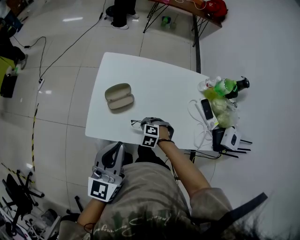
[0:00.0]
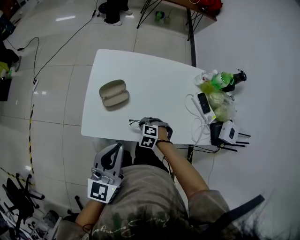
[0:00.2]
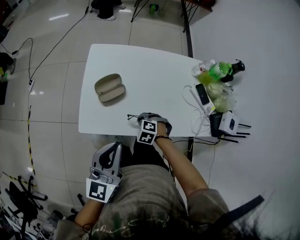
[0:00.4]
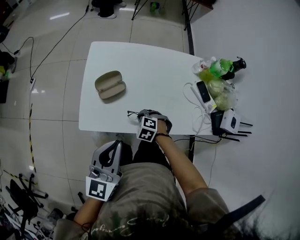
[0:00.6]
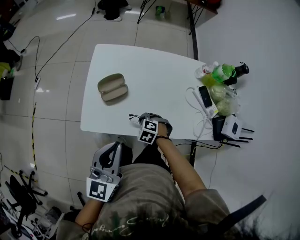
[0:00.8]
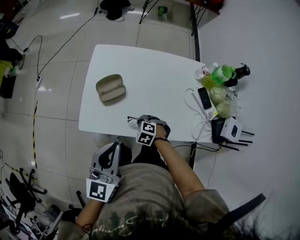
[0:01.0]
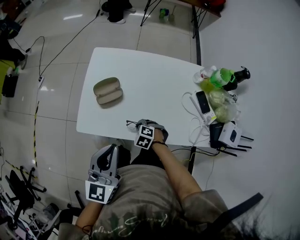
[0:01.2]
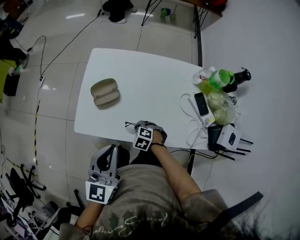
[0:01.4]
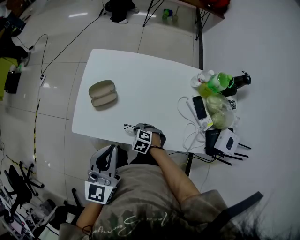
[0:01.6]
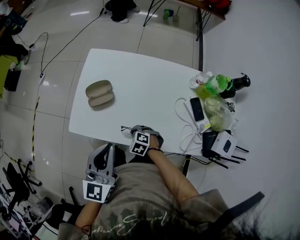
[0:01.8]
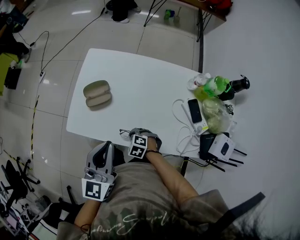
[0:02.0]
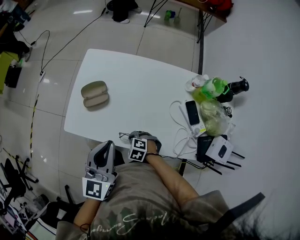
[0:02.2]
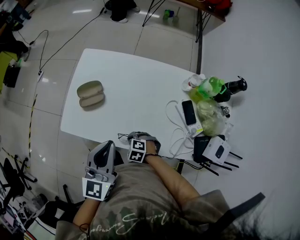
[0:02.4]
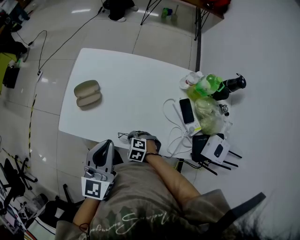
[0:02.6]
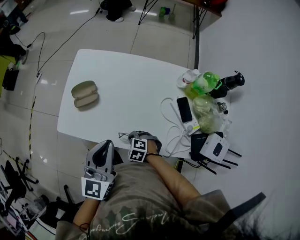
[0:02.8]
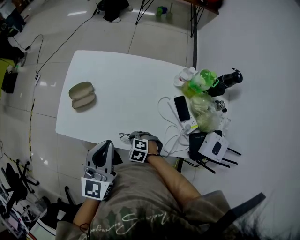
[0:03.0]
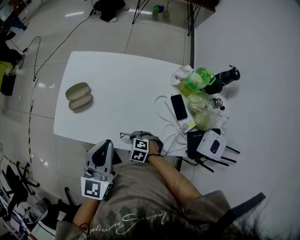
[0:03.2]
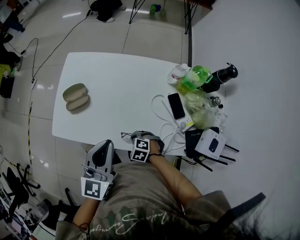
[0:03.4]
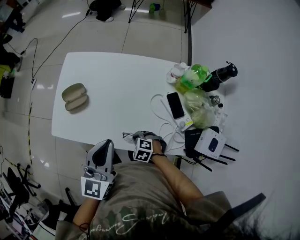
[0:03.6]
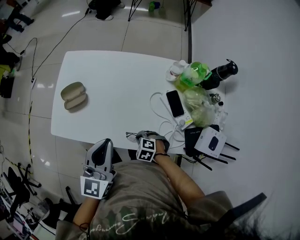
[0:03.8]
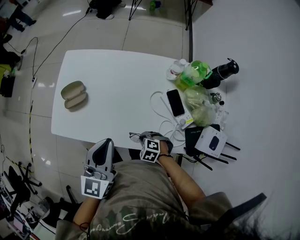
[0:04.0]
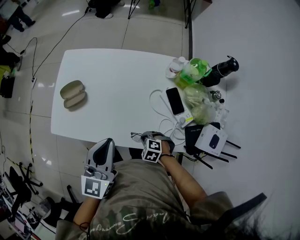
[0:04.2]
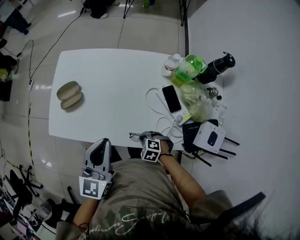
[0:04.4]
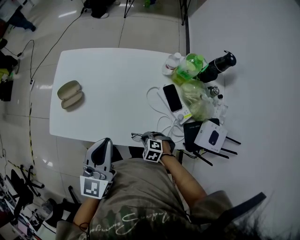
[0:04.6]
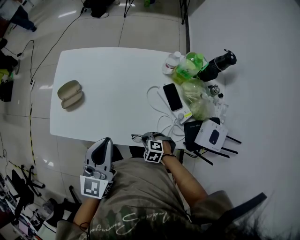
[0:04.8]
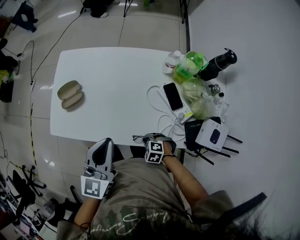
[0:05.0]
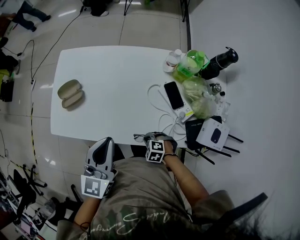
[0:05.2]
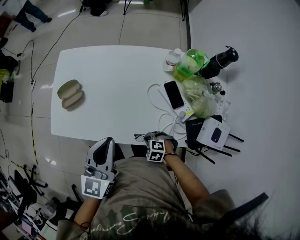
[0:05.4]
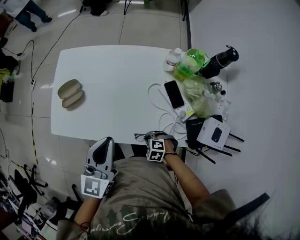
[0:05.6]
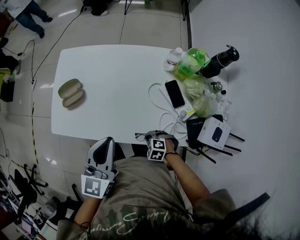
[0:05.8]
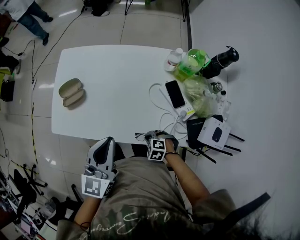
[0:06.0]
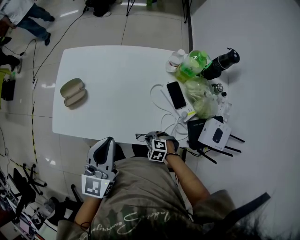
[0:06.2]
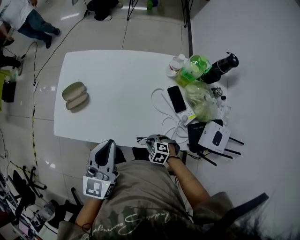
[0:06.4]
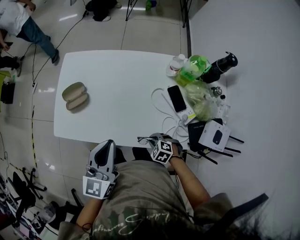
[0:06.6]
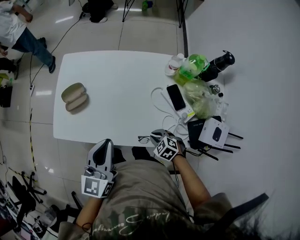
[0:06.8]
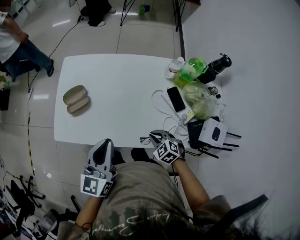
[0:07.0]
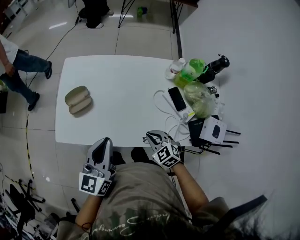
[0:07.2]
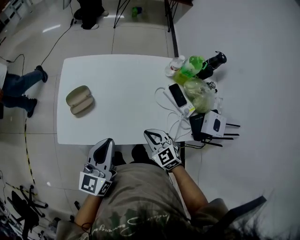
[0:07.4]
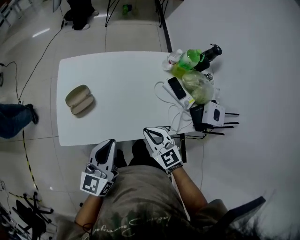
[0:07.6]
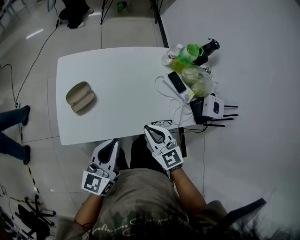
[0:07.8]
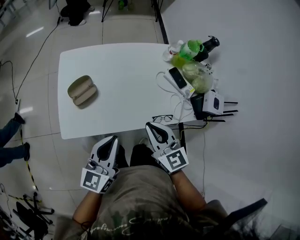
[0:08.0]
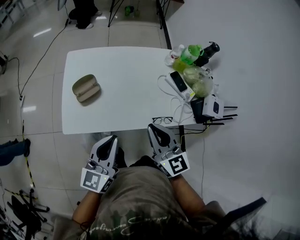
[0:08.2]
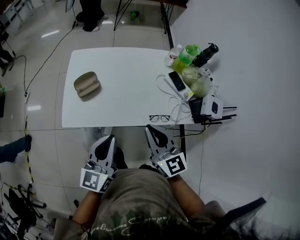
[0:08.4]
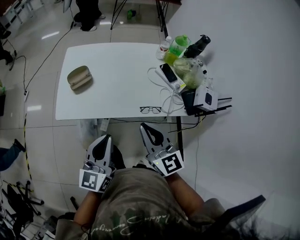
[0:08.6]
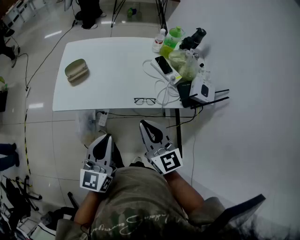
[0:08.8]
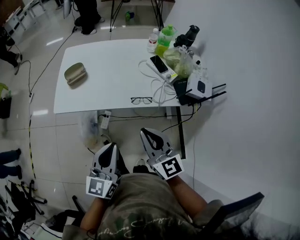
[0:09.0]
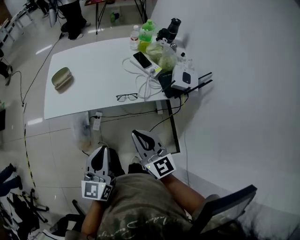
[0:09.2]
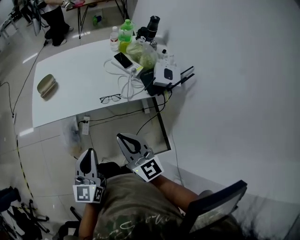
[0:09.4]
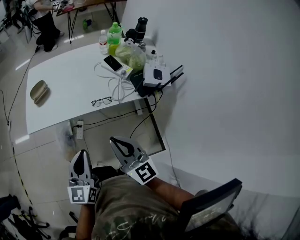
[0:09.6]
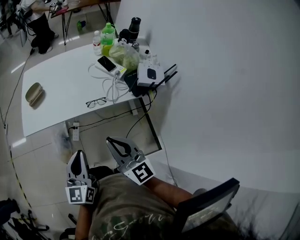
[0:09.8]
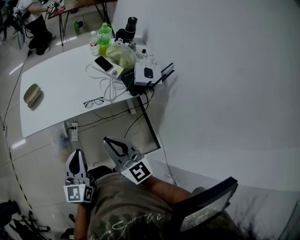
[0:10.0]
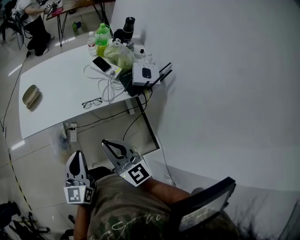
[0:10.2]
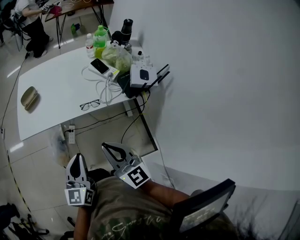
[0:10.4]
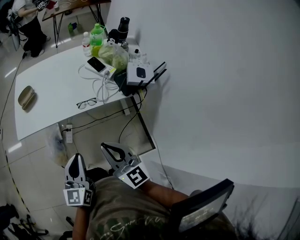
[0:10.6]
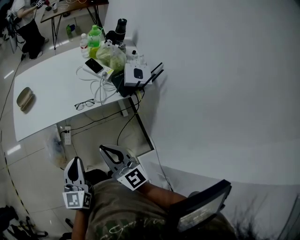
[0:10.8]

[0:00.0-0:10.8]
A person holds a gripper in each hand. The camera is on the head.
0:00.0 to 0:01.6: The left gripper ends up roughly 10 cm from where it was, while the right gripper changes place by roughly 10 cm.
0:01.6 to 0:03.0: The left gripper travels to the right by some 10 cm, while the right gripper goes approximately 10 cm to the right and backward.
0:03.0 to 0:04.6: The left gripper goes about 5 cm to the right; the right gripper travels backward and to the right by roughly 15 cm.
0:04.6 to 0:06.2: The grippers move only a little.
0:06.2 to 0:07.8: The right gripper travels upward by about 25 cm, and points its fingers about 40 degrees further upward, while the left gripper changes place by approximately 15 cm, and rotates some 20 degrees.
0:07.8 to 0:09.2: Both grippers travel together backward and to the right, approximately 30 cm. The right gripper turns by approximately 20 degrees.
0:09.2 to 0:10.8: The left gripper ends up some 5 cm from where it was. The right gripper moves backward, approximately 5 cm.

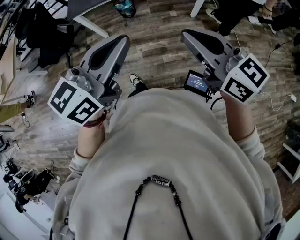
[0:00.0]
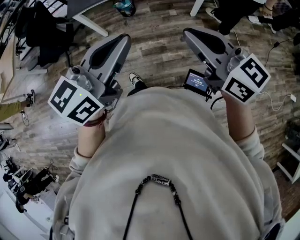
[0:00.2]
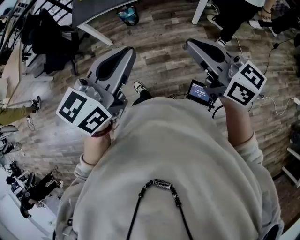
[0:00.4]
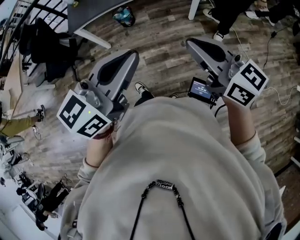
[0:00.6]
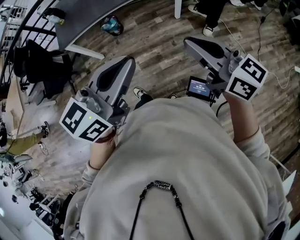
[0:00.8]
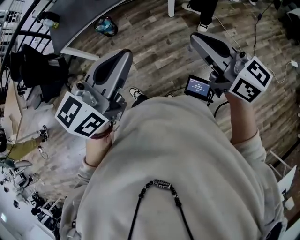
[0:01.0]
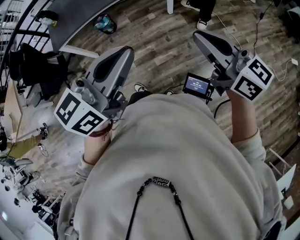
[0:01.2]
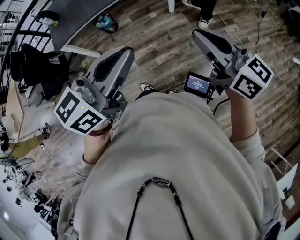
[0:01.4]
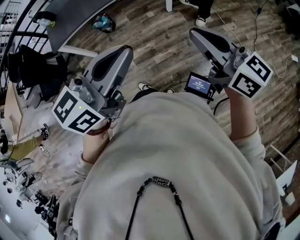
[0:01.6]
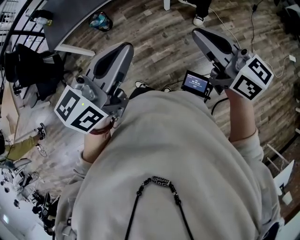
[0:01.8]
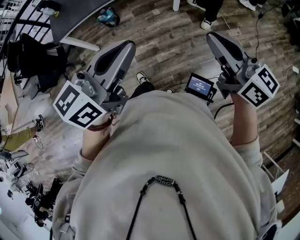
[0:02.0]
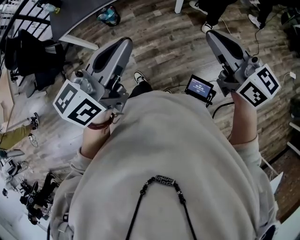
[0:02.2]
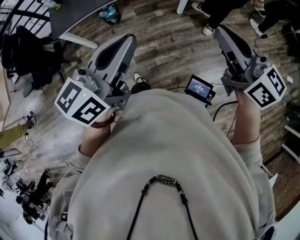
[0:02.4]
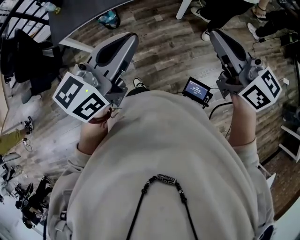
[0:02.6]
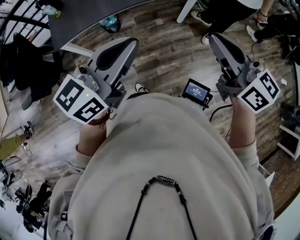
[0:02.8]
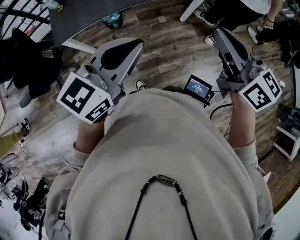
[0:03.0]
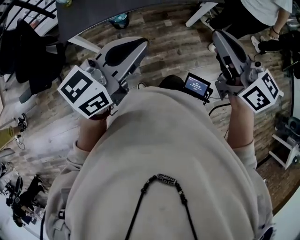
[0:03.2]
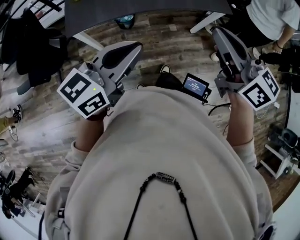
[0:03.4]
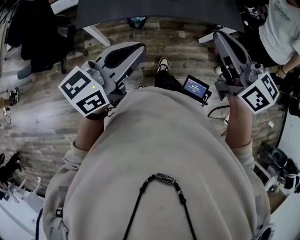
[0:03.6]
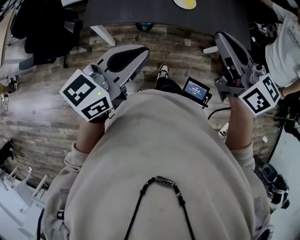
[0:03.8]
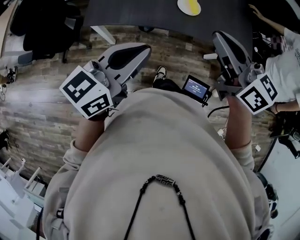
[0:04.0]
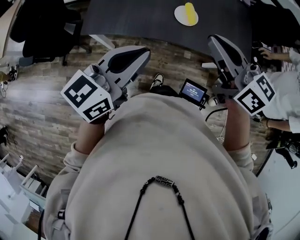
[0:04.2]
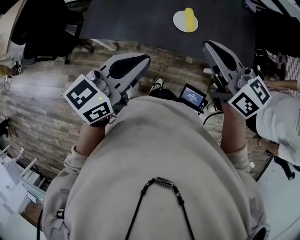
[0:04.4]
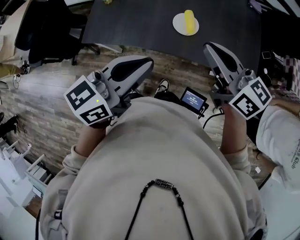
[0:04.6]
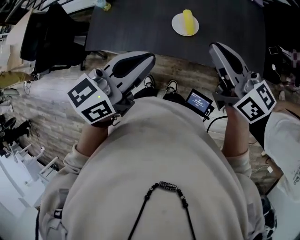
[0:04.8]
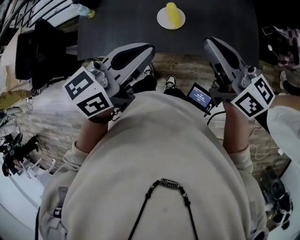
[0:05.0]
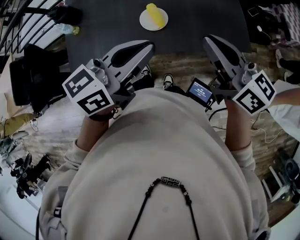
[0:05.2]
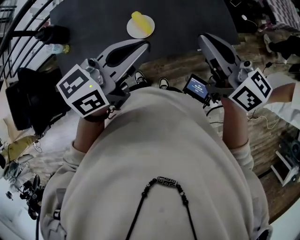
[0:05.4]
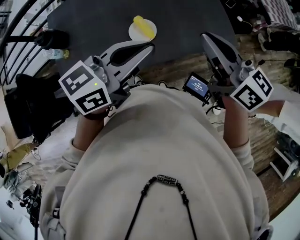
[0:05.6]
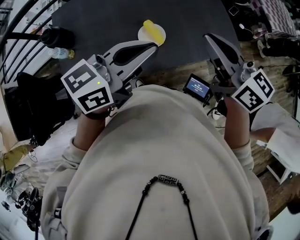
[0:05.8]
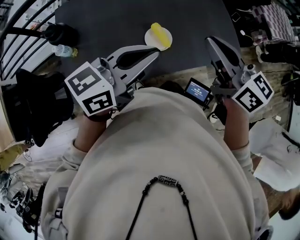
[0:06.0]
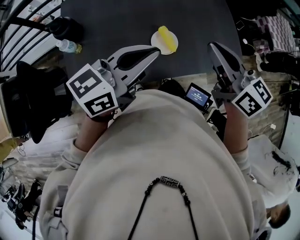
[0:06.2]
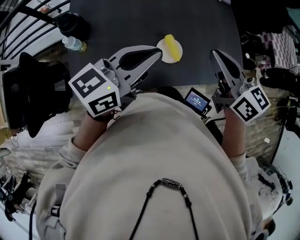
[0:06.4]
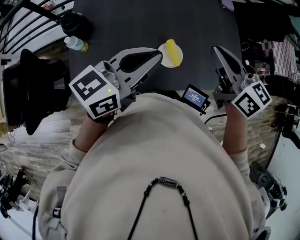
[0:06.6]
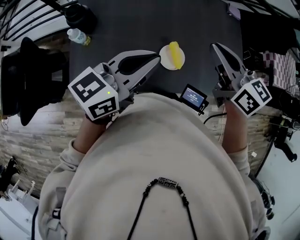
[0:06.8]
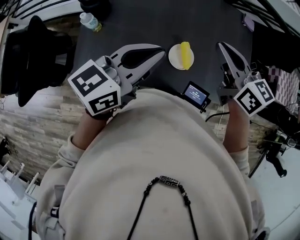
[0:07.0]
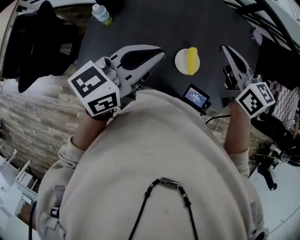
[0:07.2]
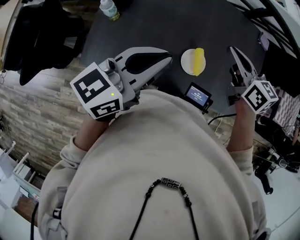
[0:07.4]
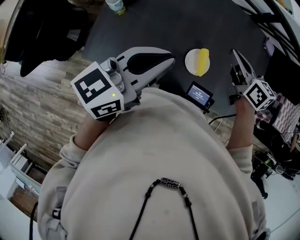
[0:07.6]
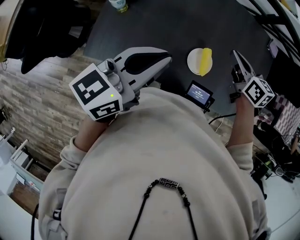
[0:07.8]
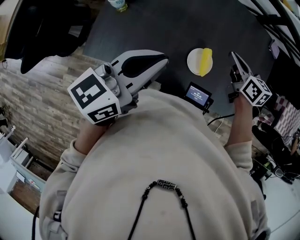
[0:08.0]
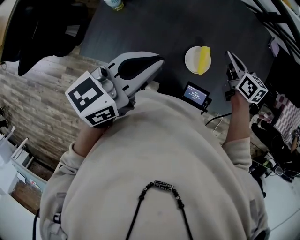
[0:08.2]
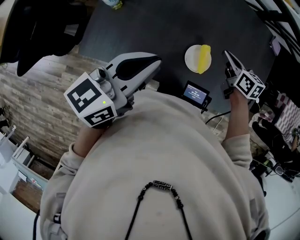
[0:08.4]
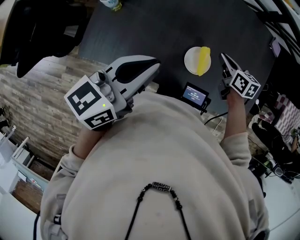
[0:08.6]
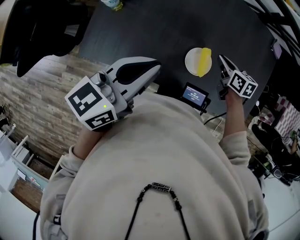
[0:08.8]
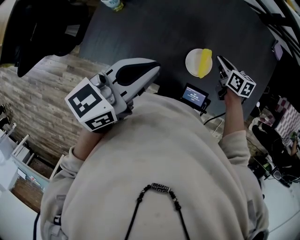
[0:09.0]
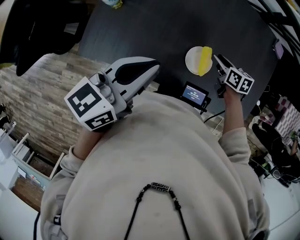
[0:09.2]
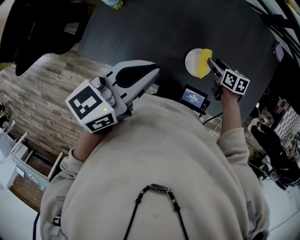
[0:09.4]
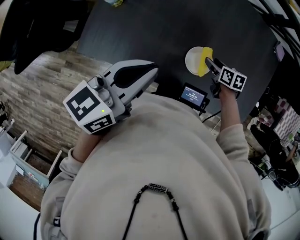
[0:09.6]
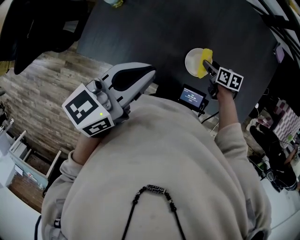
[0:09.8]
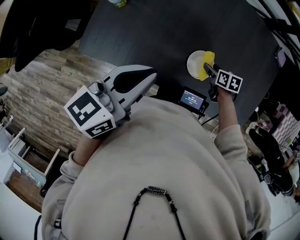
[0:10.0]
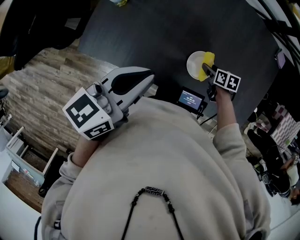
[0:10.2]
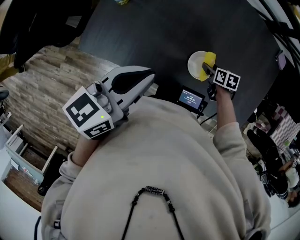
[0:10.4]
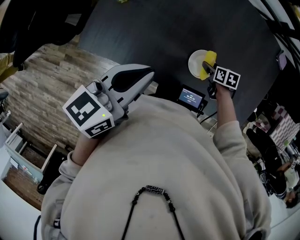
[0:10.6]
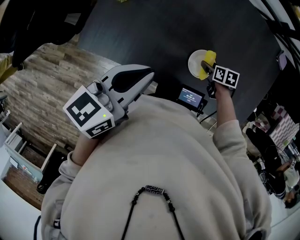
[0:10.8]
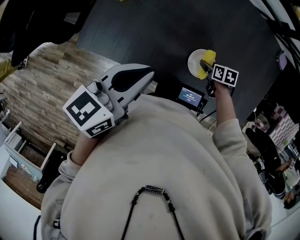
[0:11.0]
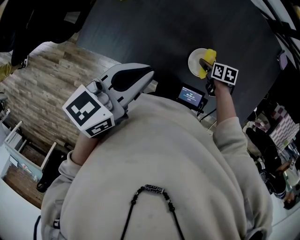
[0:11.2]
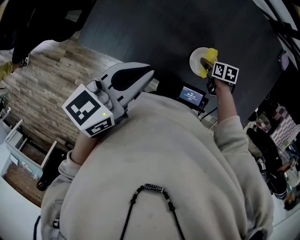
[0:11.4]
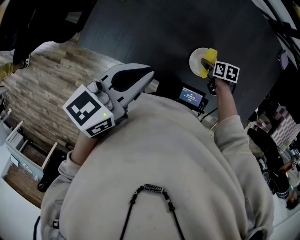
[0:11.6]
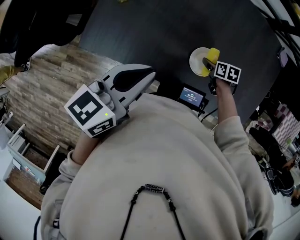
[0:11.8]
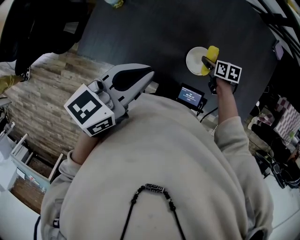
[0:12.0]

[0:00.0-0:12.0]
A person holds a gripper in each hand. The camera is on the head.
0:00.0 to 0:01.6: The grippers both shift to the right by roughly 10 cm.
0:01.6 to 0:03.0: The right gripper goes approximately 20 cm forward and to the left. The left gripper shifts roughly 20 cm forward, to the left and downward.
0:03.0 to 0:04.4: The two grippers go about 20 cm backward and to the right.
0:04.4 to 0:06.0: The left gripper shifts by roughly 10 cm, and swivels roughly 30 degrees, while the right gripper turns by about 30 degrees.
0:06.0 to 0:07.6: The left gripper moves roughly 10 cm, and rotates some 30 degrees. The right gripper moves roughly 20 cm, and changes its angle by approximately 30 degrees.
0:07.6 to 0:09.0: The right gripper is displaced downward by roughly 20 cm.
0:09.0 to 0:10.4: The right gripper shifts roughly 10 cm downward, and opens up.
0:10.4 to 0:12.0: The grippers move only a little.

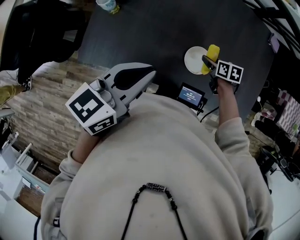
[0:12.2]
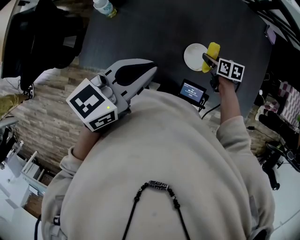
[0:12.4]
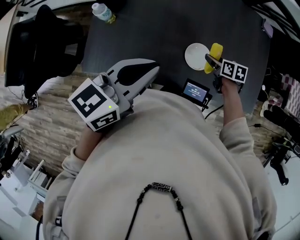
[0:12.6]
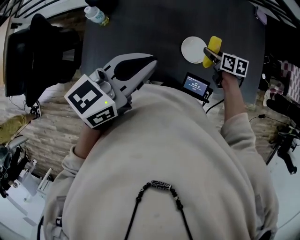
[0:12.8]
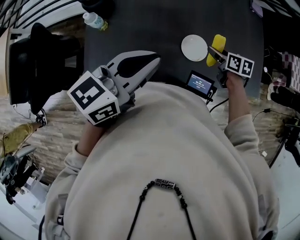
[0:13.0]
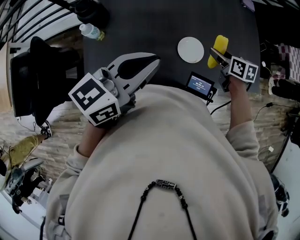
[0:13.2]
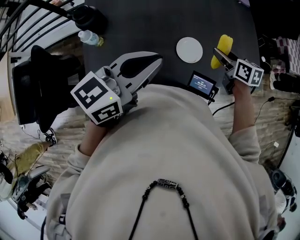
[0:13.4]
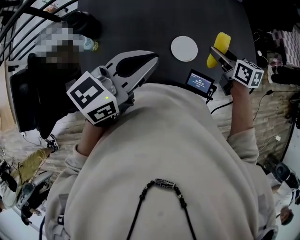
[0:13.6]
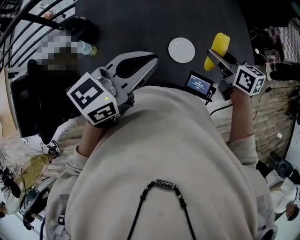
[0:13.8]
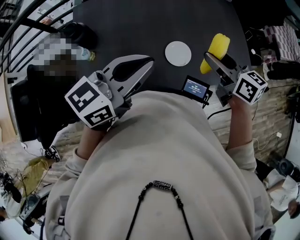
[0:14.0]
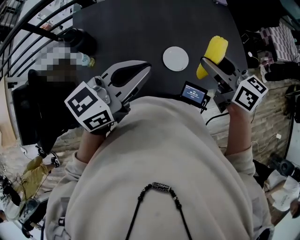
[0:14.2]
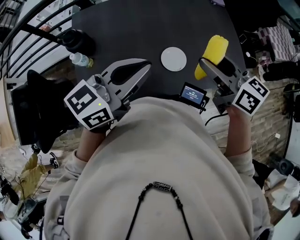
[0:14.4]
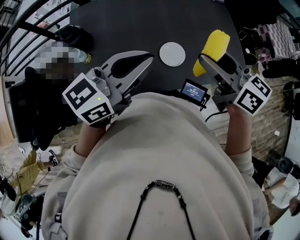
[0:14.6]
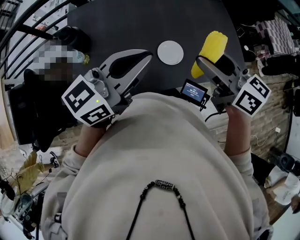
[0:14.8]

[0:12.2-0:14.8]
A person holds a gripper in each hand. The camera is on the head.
0:12.2 to 0:13.4: The right gripper travels upward by roughly 15 cm, and changes its angle by about 30 degrees. Meanwhile the left gripper turns by approximately 30 degrees.
0:13.4 to 0:14.8: The right gripper is displaced upward and backward by some 20 cm, and turns by some 30 degrees. Meanwhile the left gripper moves approximately 5 cm.
